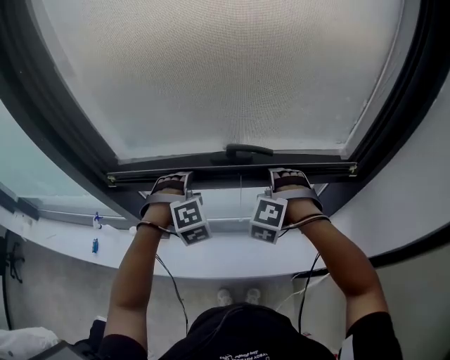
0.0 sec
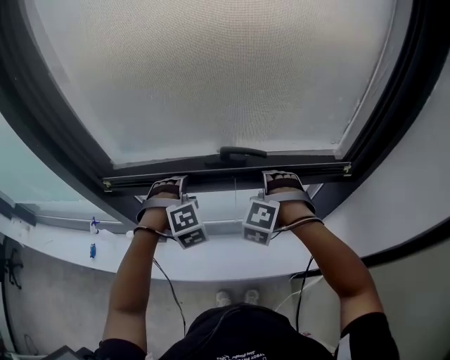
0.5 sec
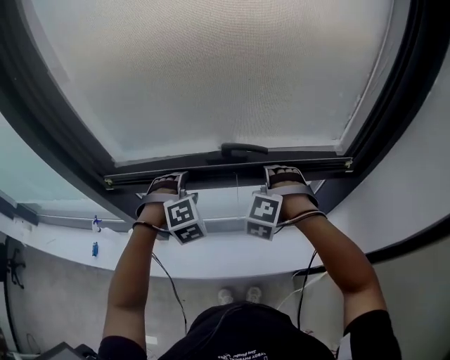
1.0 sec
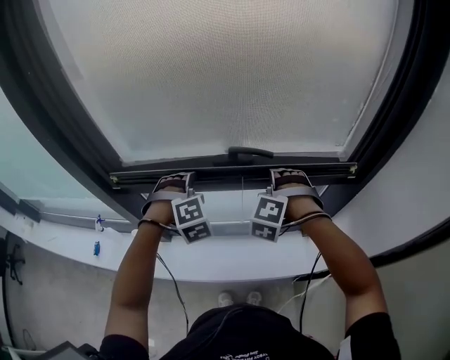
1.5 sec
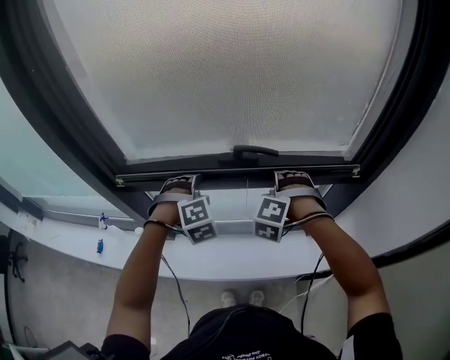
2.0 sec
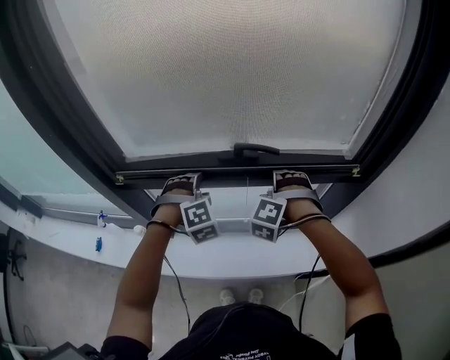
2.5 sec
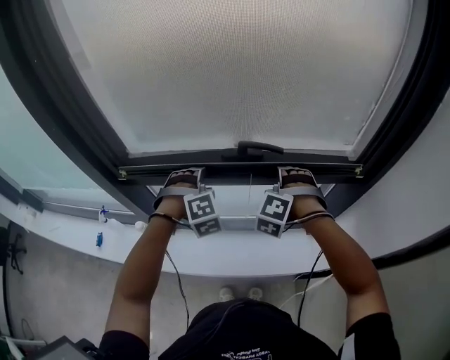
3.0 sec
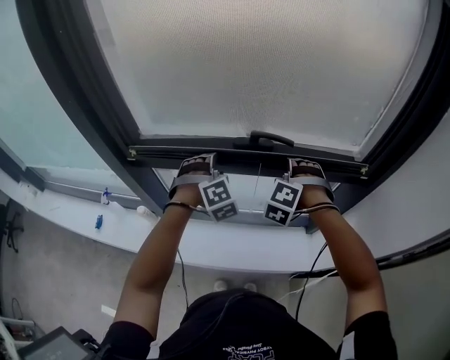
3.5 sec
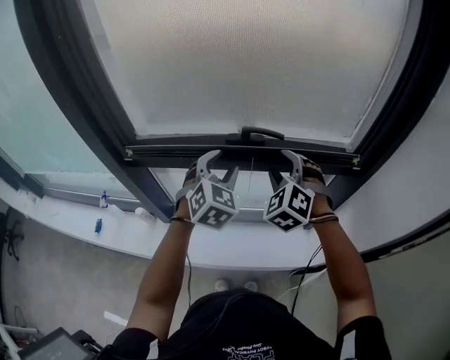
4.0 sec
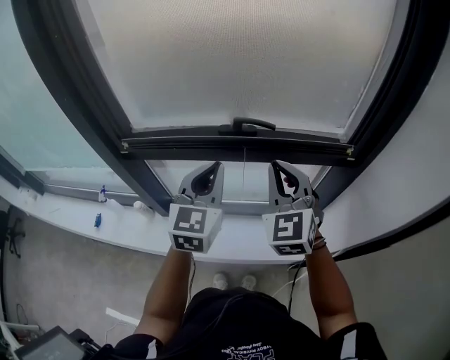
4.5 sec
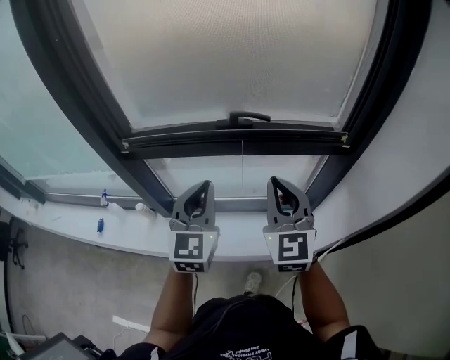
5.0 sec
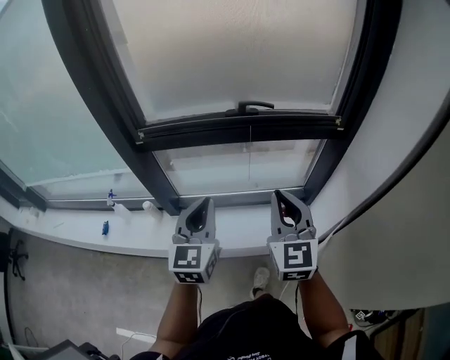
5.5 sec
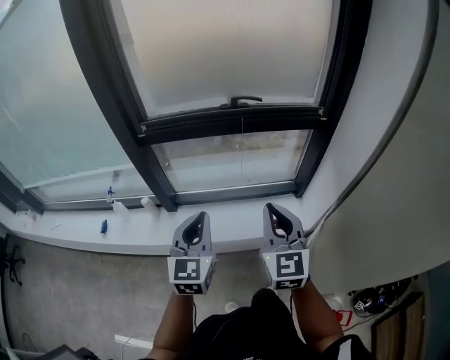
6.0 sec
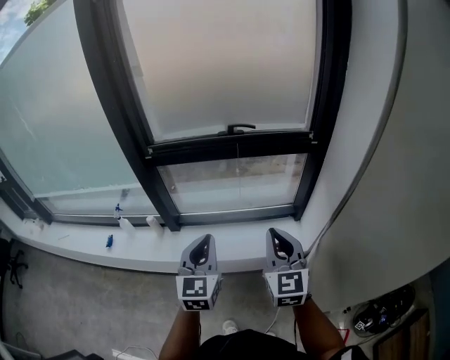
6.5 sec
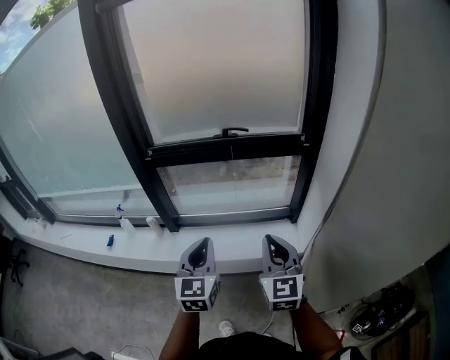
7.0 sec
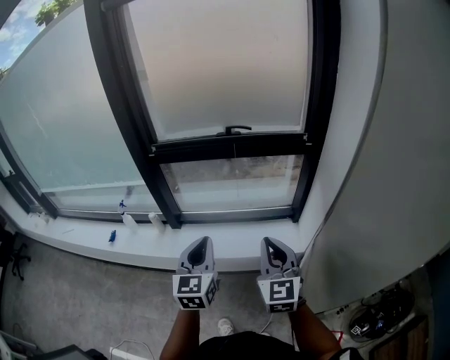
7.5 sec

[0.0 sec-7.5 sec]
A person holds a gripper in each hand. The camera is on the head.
0.0 sec to 2.0 sec: The grippers make only small movements.
2.0 sec to 4.0 sec: The right gripper moves upward, approximately 10 cm, and swivels about 40 degrees. The left gripper heads upward and to the right, covering approximately 10 cm, and rotates about 50 degrees.
4.0 sec to 5.5 sec: The grippers both shift backward by about 25 cm. The right gripper twists approximately 50 degrees clockwise, seen from behind, and closes up. The left gripper rotates some 40 degrees, and closes up.
5.5 sec to 7.5 sec: Both grippers move backward, roughly 20 cm.

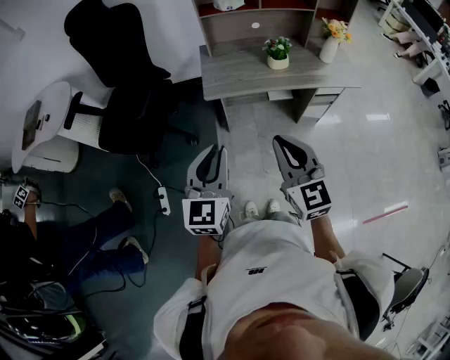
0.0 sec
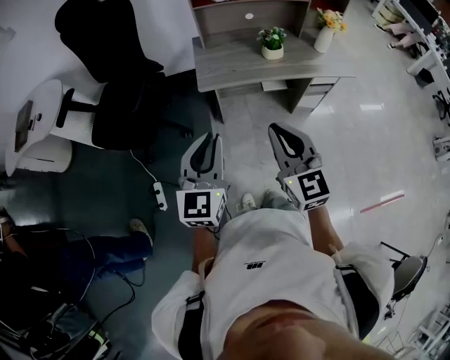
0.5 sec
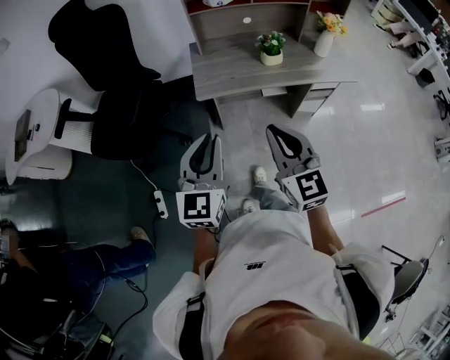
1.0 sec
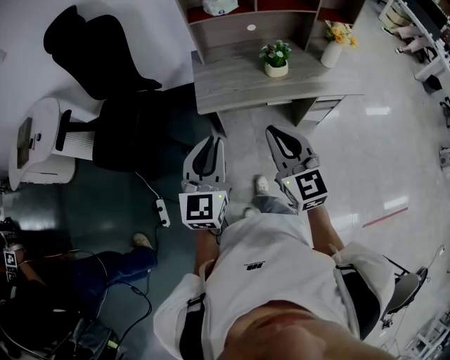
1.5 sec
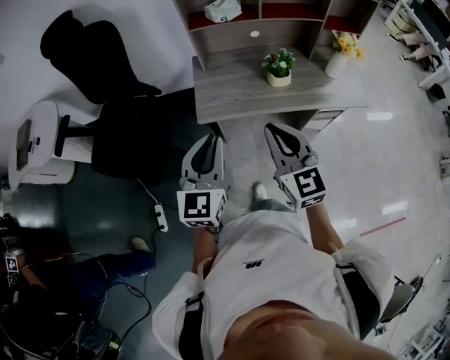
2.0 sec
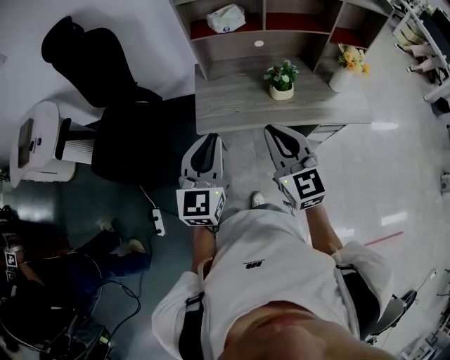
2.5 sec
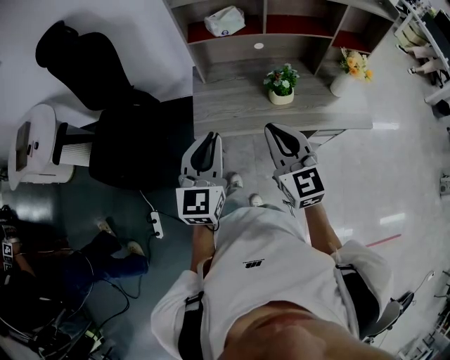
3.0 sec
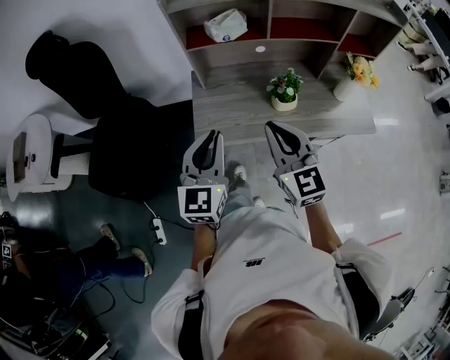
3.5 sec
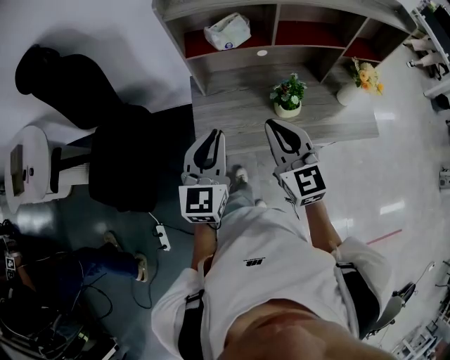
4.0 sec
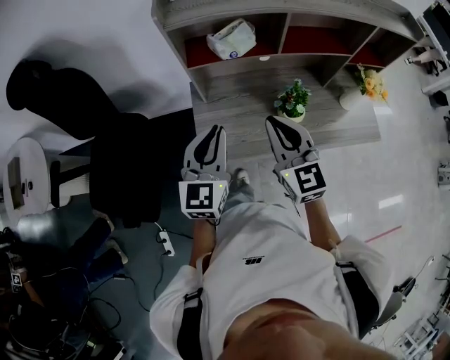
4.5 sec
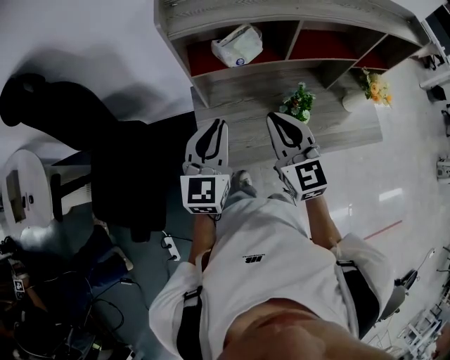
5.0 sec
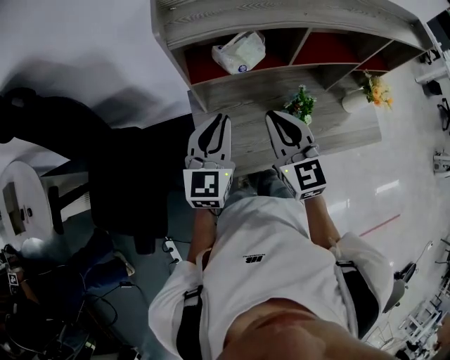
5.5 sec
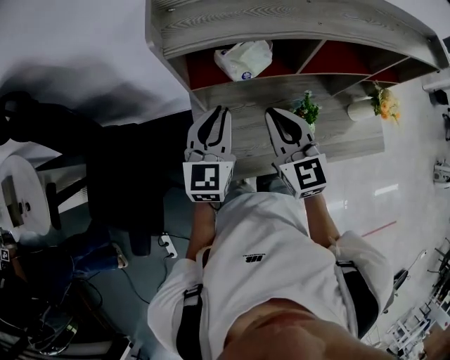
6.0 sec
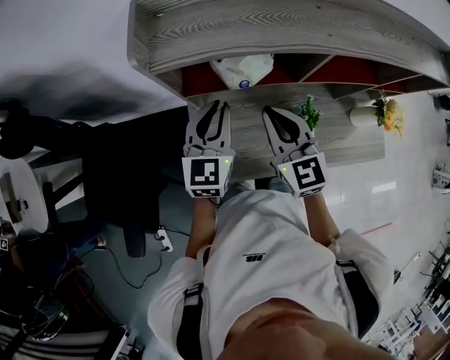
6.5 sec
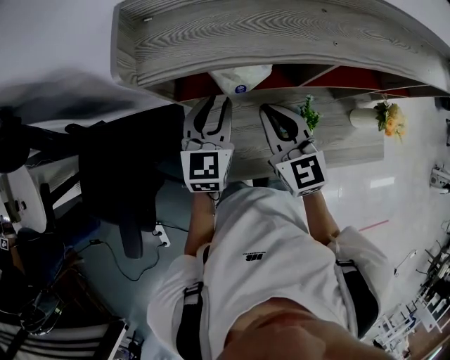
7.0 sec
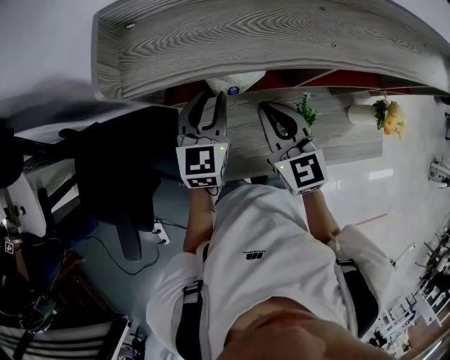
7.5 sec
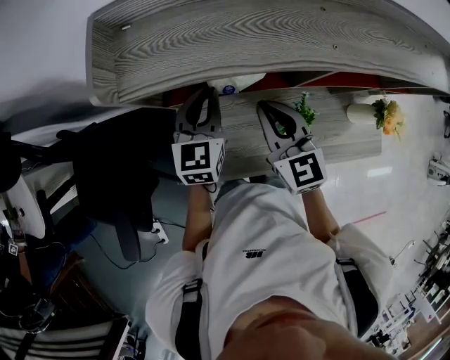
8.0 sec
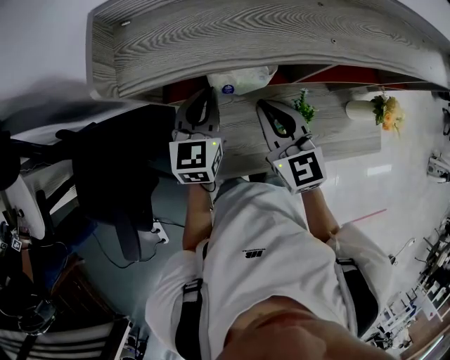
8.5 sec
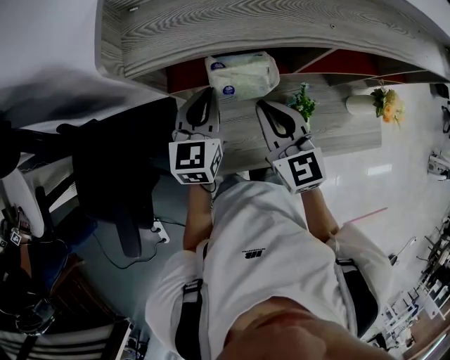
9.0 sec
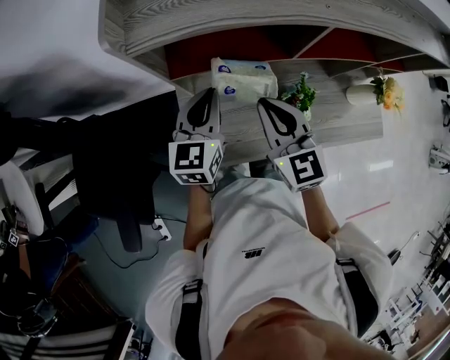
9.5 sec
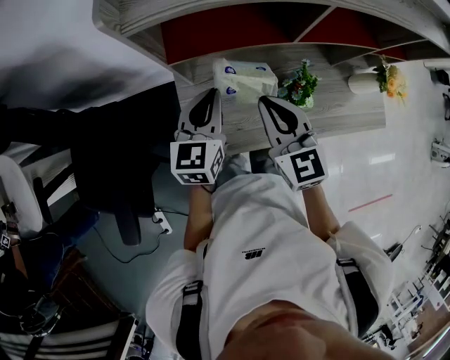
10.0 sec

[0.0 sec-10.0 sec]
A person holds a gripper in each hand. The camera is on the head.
0.0 sec to 2.0 sec: Both grippers travel together forward, about 20 cm.
2.0 sec to 4.0 sec: Both grippers travel together forward, roughly 20 cm.
4.0 sec to 6.0 sec: Both grippers travel together forward, roughly 20 cm.
6.0 sec to 8.0 sec: The right gripper shifts roughly 10 cm forward. The left gripper is displaced forward and downward by approximately 10 cm.
8.0 sec to 10.0 sec: The grippers both shift backward by approximately 10 cm.

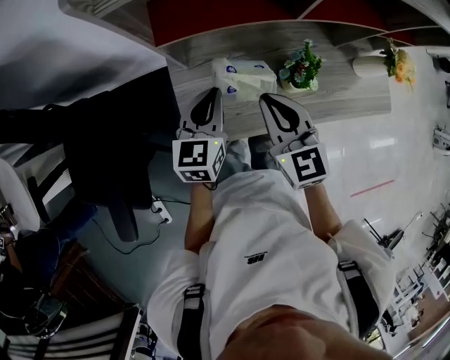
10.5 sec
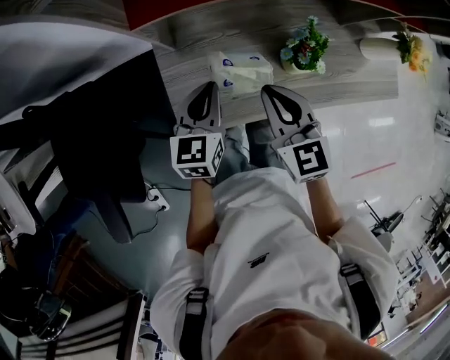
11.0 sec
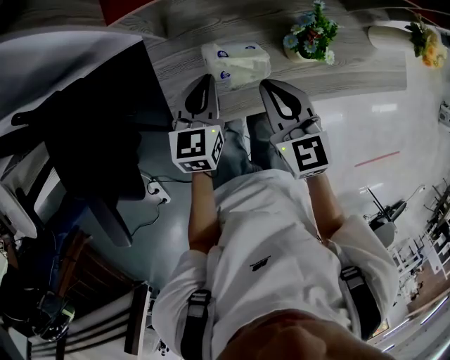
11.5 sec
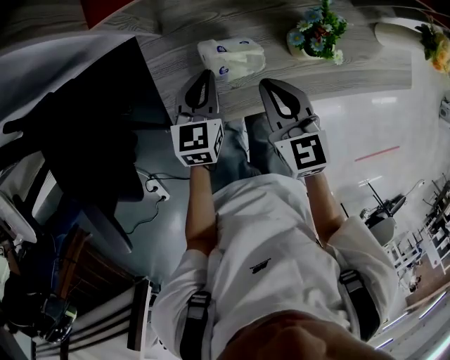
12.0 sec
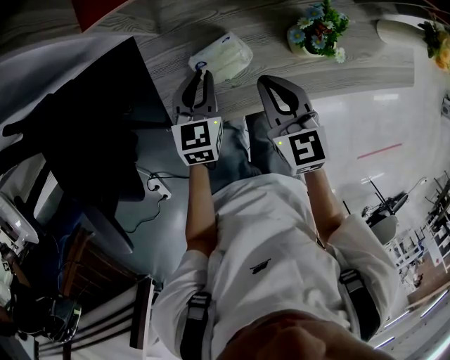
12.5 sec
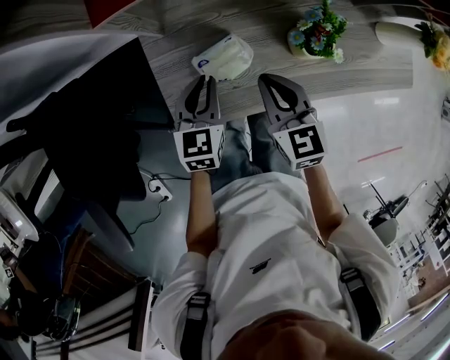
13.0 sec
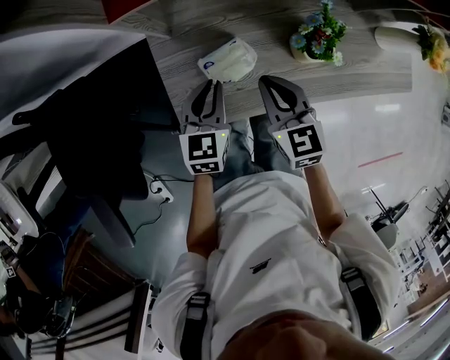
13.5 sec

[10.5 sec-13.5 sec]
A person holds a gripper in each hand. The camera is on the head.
10.5 sec to 12.0 sec: Both grippers travel together downward, roughly 15 cm.
12.0 sec to 13.5 sec: There are only small adjustments of the grippers.

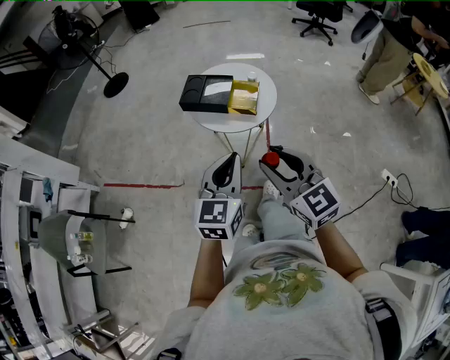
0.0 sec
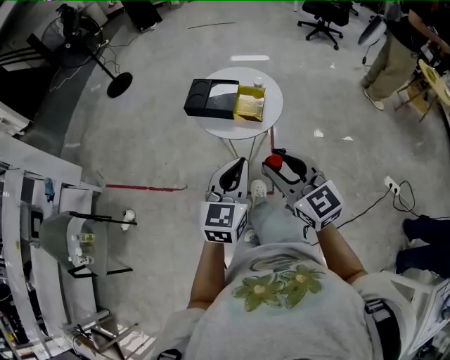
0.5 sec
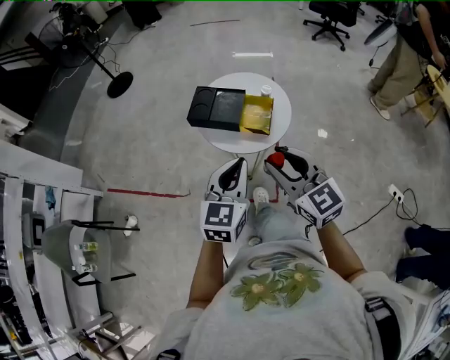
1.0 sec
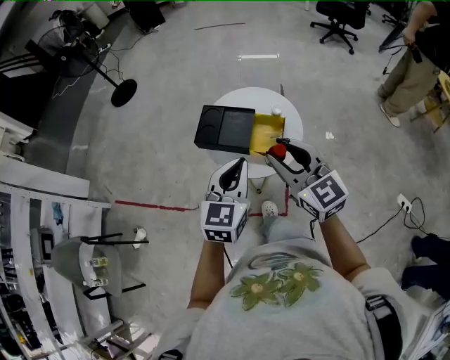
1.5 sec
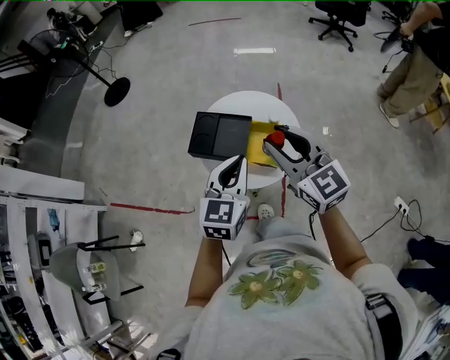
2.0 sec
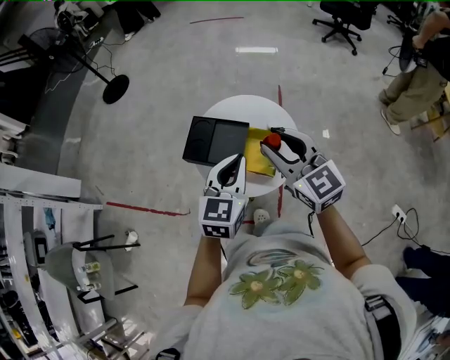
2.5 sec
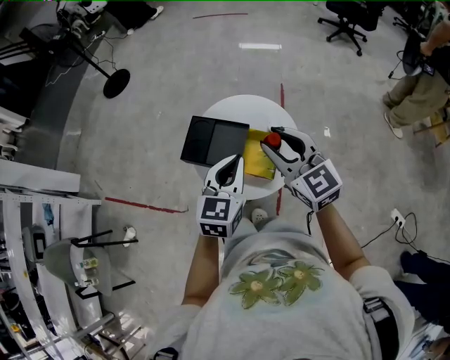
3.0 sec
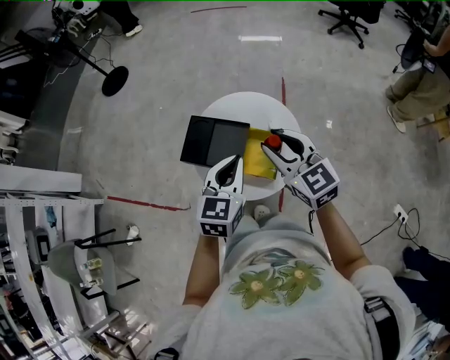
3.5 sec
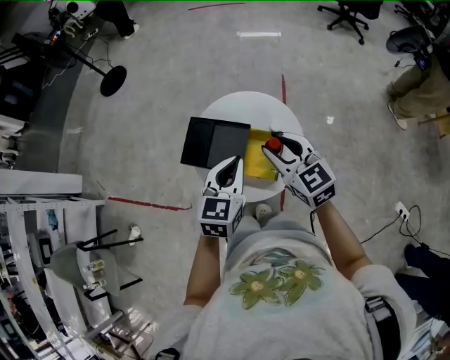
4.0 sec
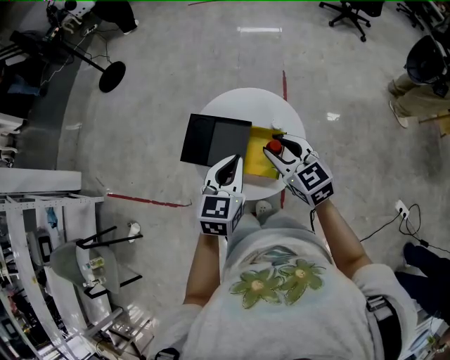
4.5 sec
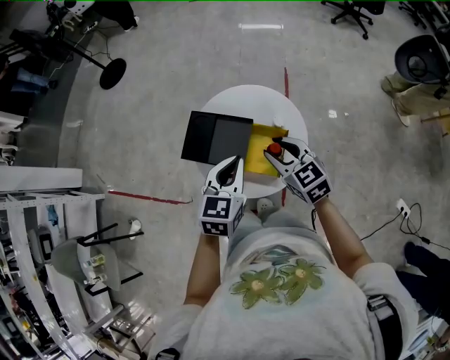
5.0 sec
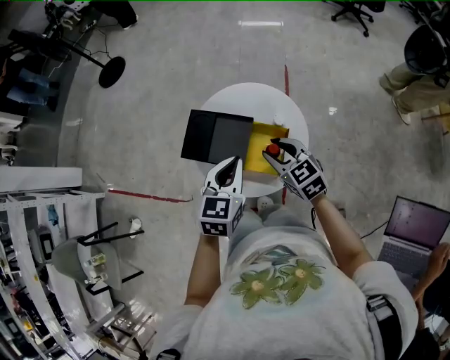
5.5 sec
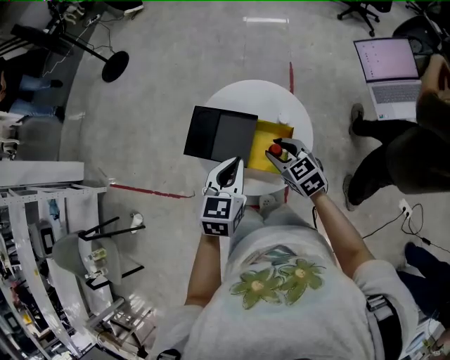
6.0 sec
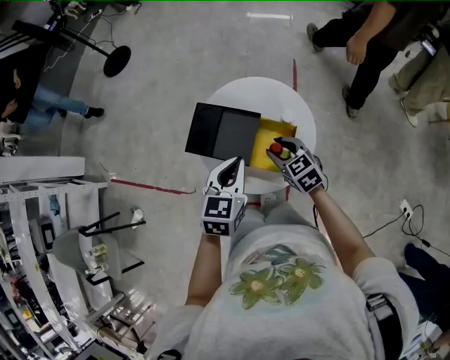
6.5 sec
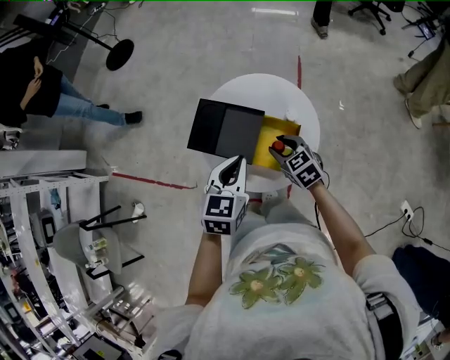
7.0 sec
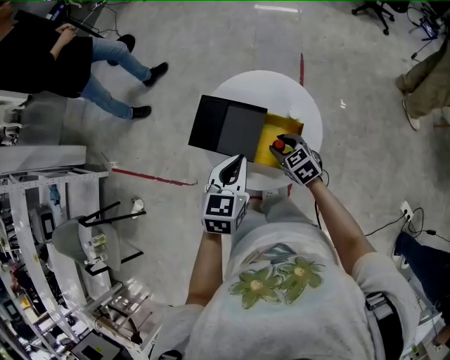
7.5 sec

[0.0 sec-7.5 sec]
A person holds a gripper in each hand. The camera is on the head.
0.0 sec to 2.0 sec: Both grippers travel together forward, some 35 cm.
2.0 sec to 4.0 sec: The right gripper heads downward and forward, covering roughly 15 cm, while the left gripper goes roughly 10 cm forward and downward.
4.0 sec to 5.5 sec: The right gripper travels downward by about 10 cm.
5.5 sec to 7.5 sec: The right gripper is displaced downward by about 10 cm.
